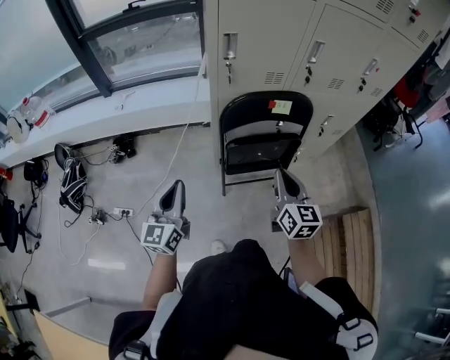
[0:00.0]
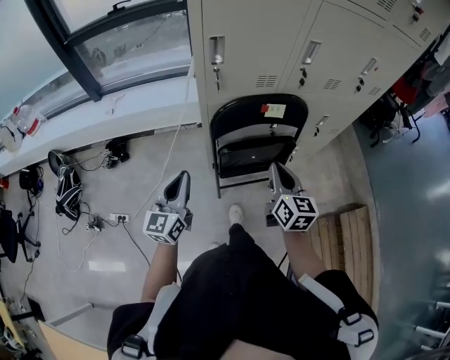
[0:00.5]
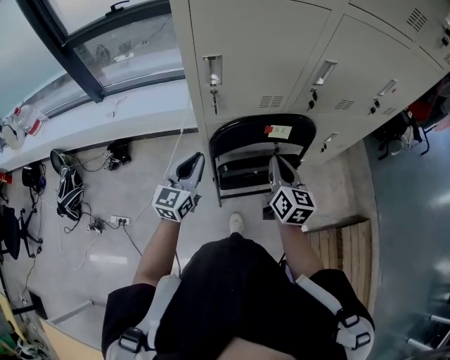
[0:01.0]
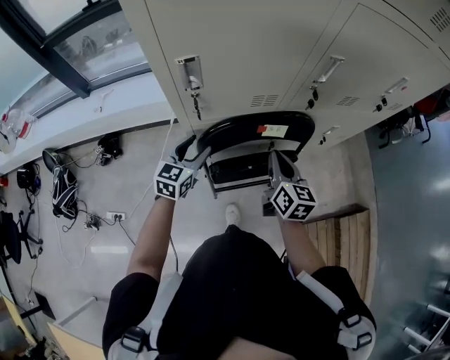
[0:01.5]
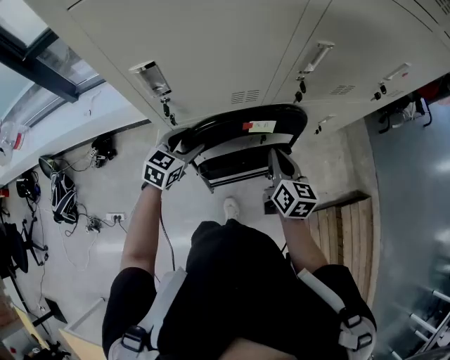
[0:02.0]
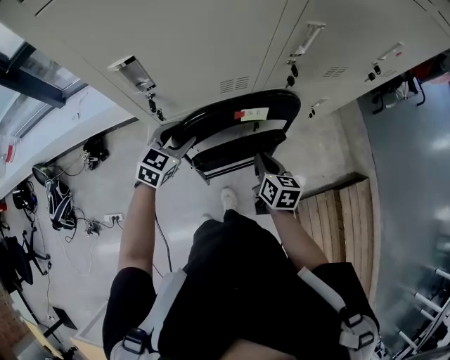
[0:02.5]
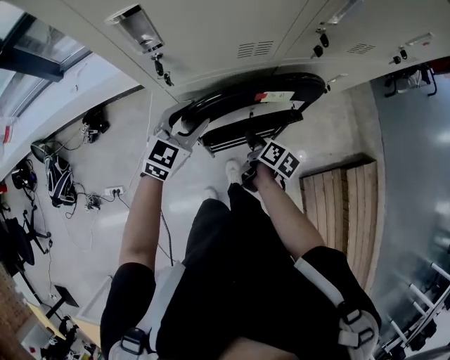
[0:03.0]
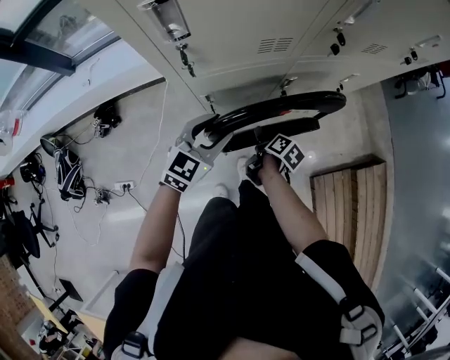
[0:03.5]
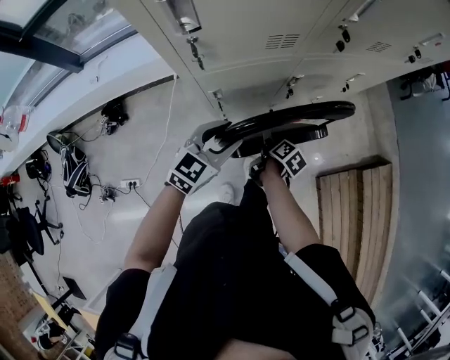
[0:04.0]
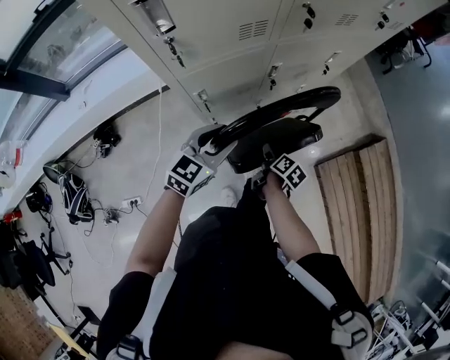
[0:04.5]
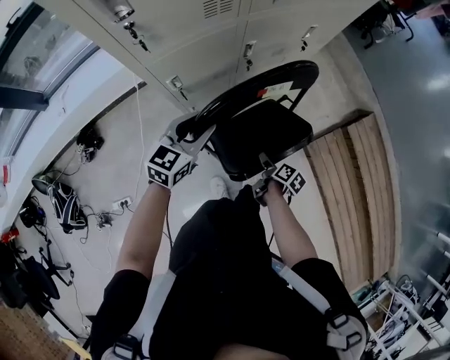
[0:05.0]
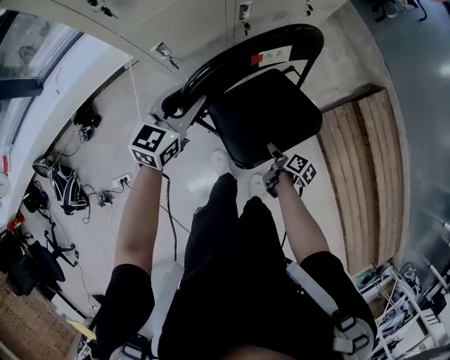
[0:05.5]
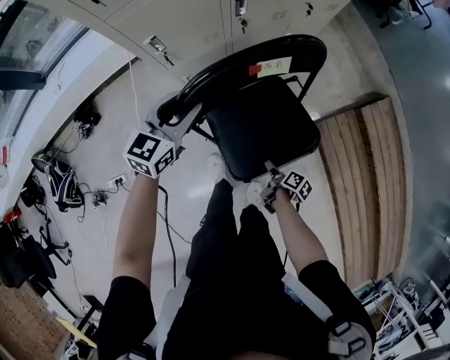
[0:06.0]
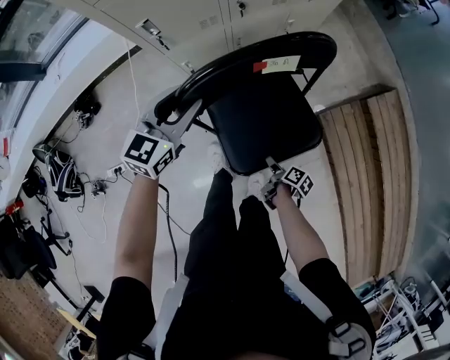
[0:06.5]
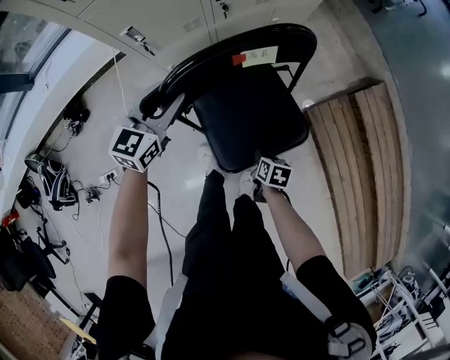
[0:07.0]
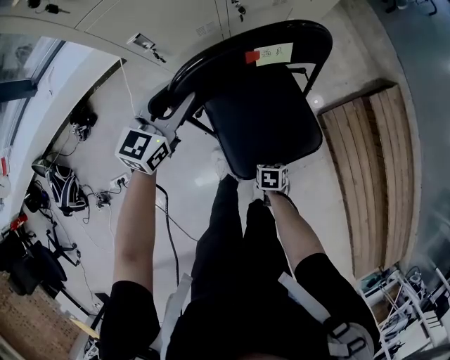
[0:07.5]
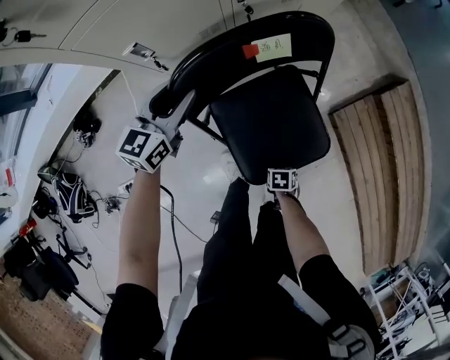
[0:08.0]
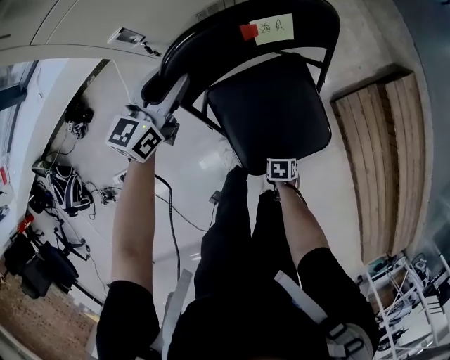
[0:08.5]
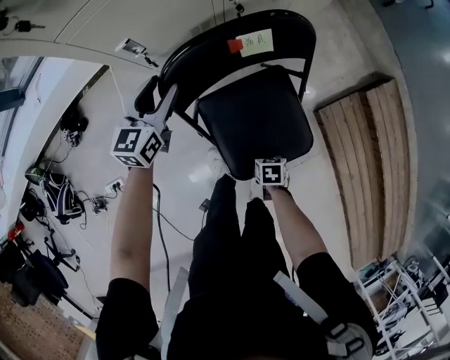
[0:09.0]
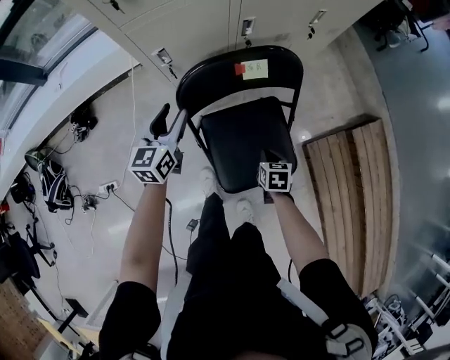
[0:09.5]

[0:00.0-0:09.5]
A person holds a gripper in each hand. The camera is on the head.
0:00.0 to 0:02.0: Both grippers move forward and downward, roughly 30 cm. The left gripper points its fingers approximately 30 degrees further downward, and opens its fingers.
0:02.0 to 0:04.0: The right gripper is displaced downward and backward by roughly 25 cm, rolls clockwise, seen from behind, by roughly 50 degrees, and opens up. The left gripper is displaced backward and to the right by approximately 15 cm.
0:04.0 to 0:05.5: The left gripper changes place by approximately 5 cm; the right gripper travels backward, to the right and downward by some 30 cm.
0:05.5 to 0:07.5: The left gripper shifts about 5 cm downward, while the right gripper swings up and down, approximately 10 cm each way, with 2 reversals, twists some 60 degrees counterclockwise, seen from behind, and closes.
0:07.5 to 0:09.5: The right gripper moves upward, some 10 cm; the left gripper goes downward and returns, approximately 5 cm each way, and turns by approximately 20 degrees.

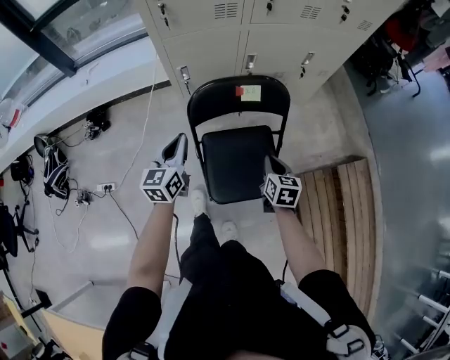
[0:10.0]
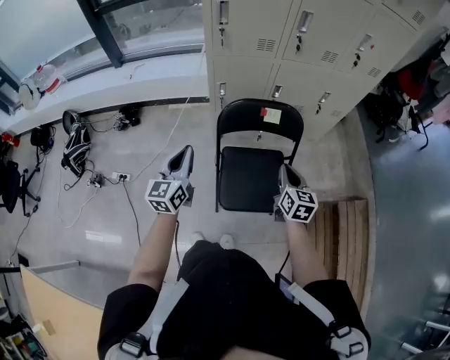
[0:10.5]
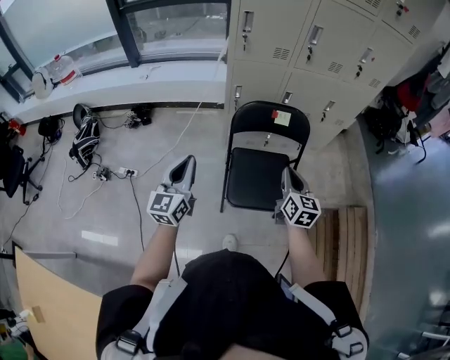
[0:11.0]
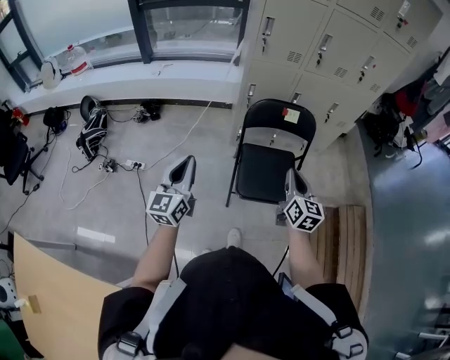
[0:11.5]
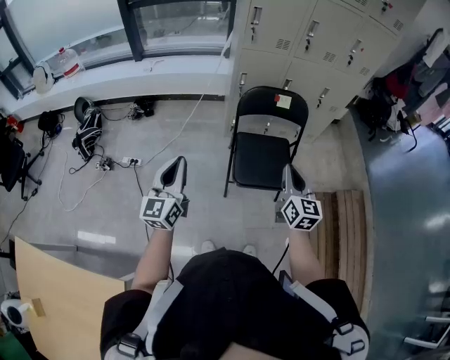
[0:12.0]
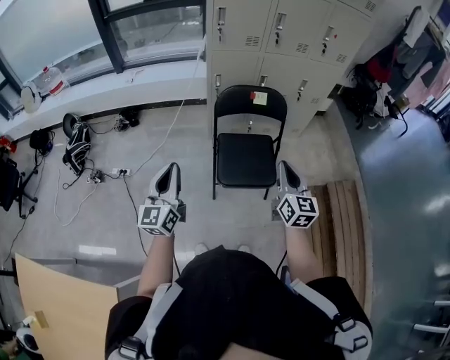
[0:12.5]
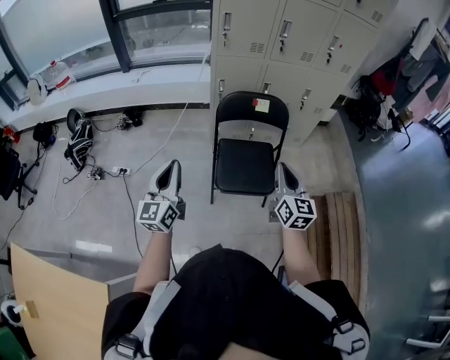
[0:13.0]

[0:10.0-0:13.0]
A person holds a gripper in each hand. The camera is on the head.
0:10.0 to 0:11.5: The left gripper moves backward, upward and to the left, some 40 cm, and swivels some 20 degrees; the right gripper is displaced upward, backward and to the left by some 30 cm, and rotates some 30 degrees.
0:11.5 to 0:13.0: The two grippers go about 10 cm to the right.

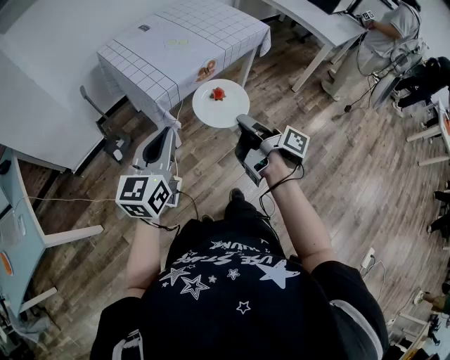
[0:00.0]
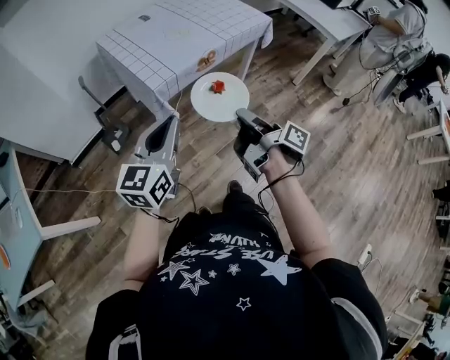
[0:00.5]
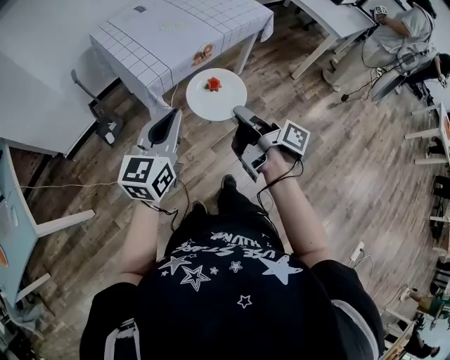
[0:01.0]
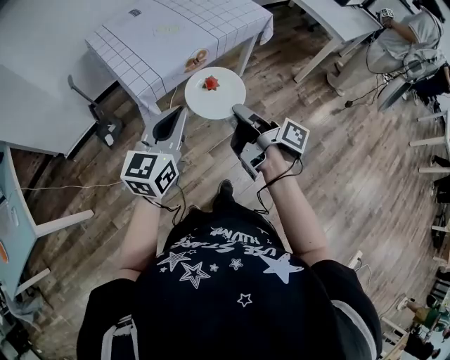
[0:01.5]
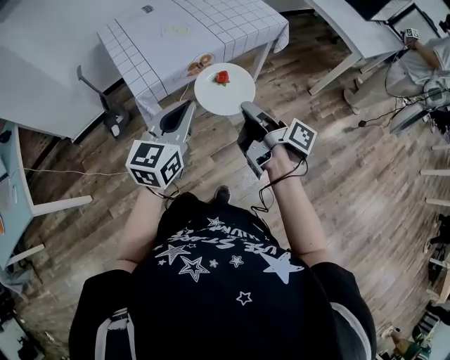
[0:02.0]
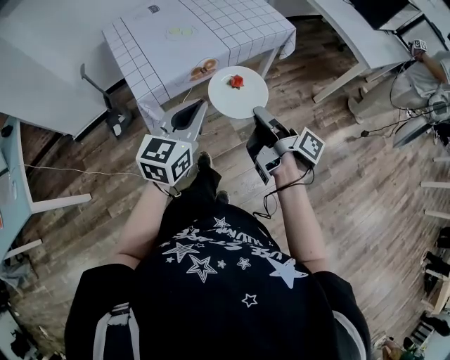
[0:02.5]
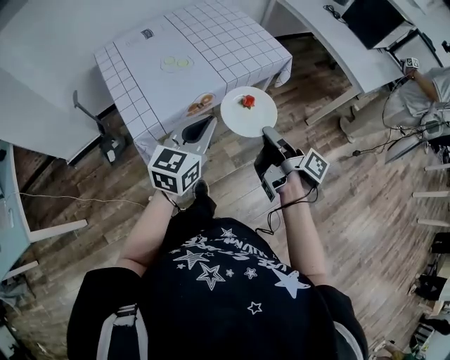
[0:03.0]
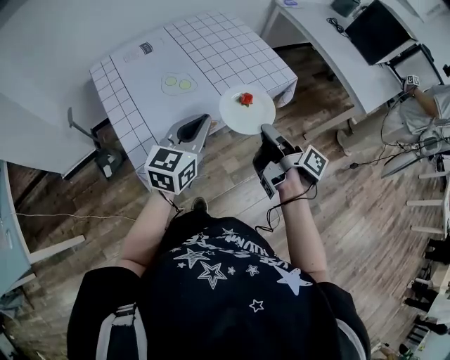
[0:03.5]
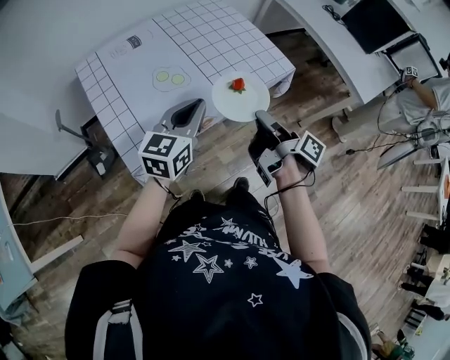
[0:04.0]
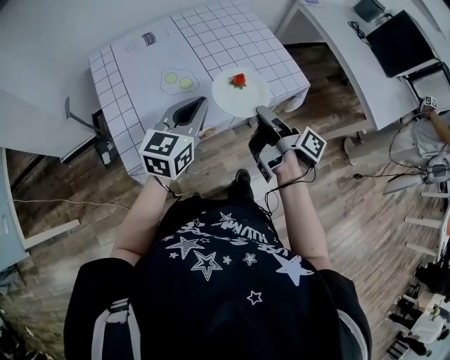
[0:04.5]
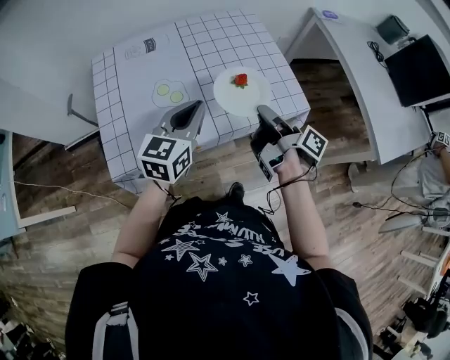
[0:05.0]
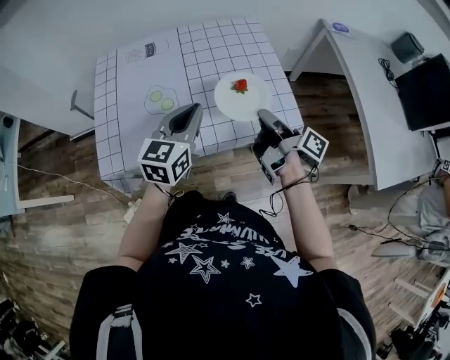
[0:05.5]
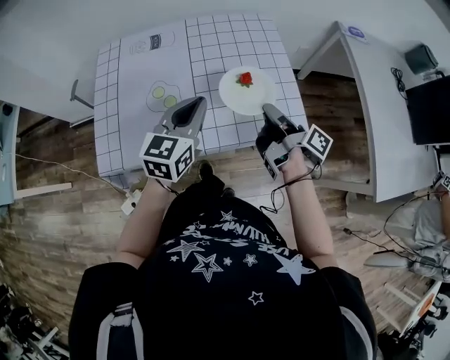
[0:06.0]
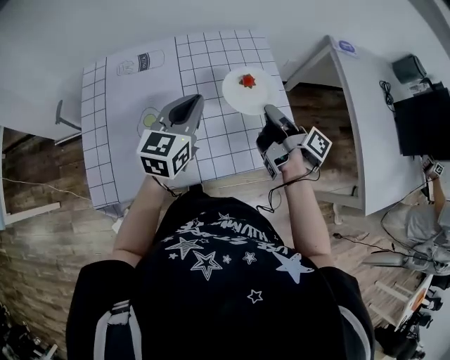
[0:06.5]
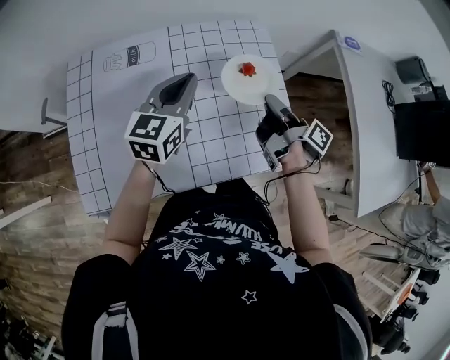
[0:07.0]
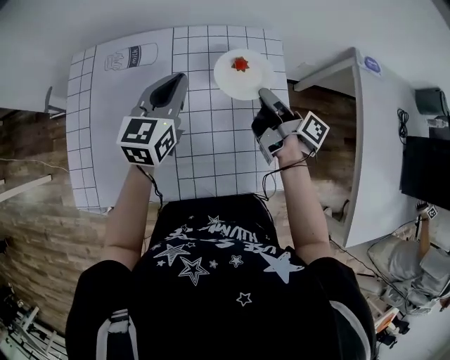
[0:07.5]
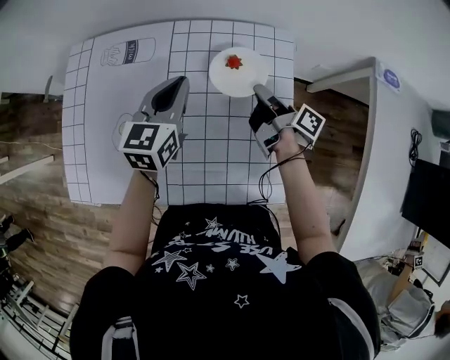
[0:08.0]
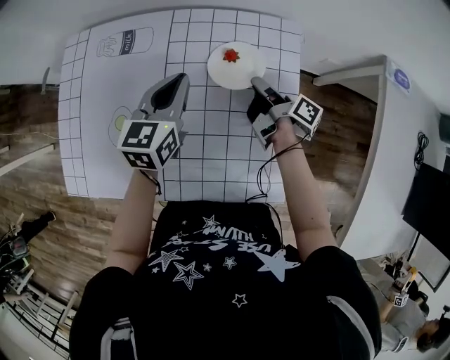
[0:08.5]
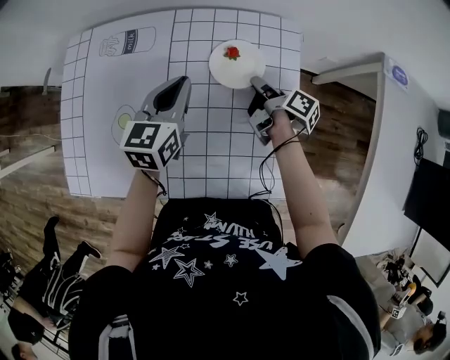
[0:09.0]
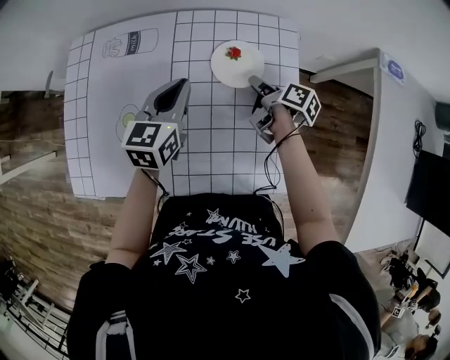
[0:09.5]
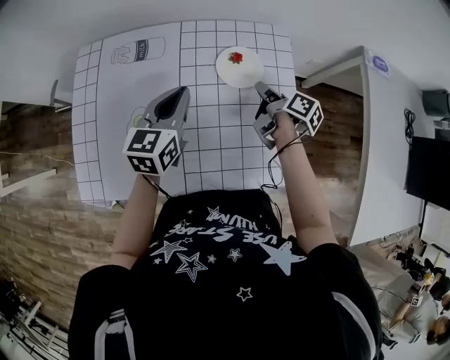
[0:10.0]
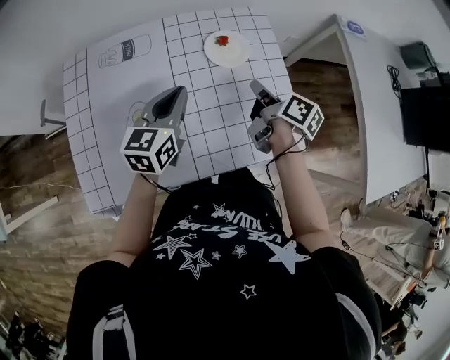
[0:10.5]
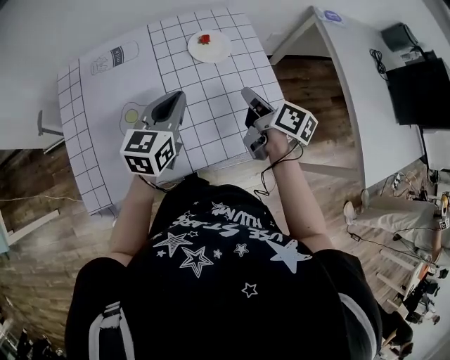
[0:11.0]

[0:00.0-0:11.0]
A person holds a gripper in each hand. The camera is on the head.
0:00.0 to 0:02.0: The left gripper moves about 20 cm.
0:02.0 to 0:03.5: The left gripper changes place by roughly 20 cm.
0:03.5 to 0:05.5: The left gripper ends up roughly 20 cm from where it was, and rotates about 30 degrees.
0:05.5 to 0:07.5: The left gripper shifts by approximately 25 cm.
0:07.5 to 0:09.0: The left gripper goes some 5 cm downward.
0:09.0 to 0:11.0: The left gripper ends up approximately 15 cm from where it was, and changes its angle by some 20 degrees.

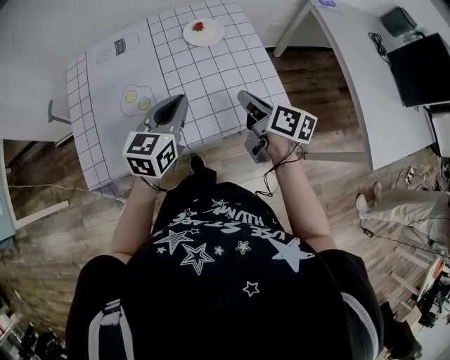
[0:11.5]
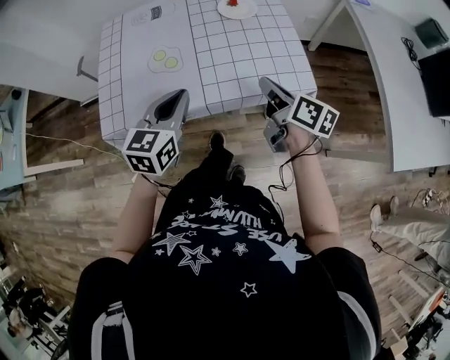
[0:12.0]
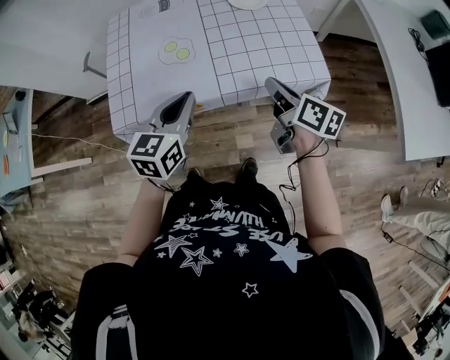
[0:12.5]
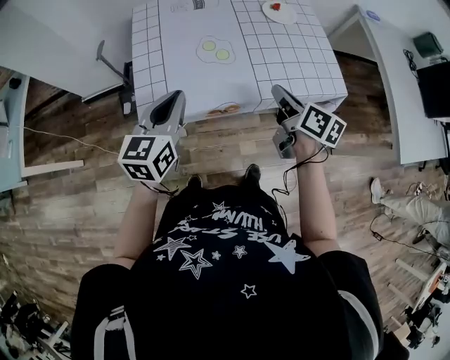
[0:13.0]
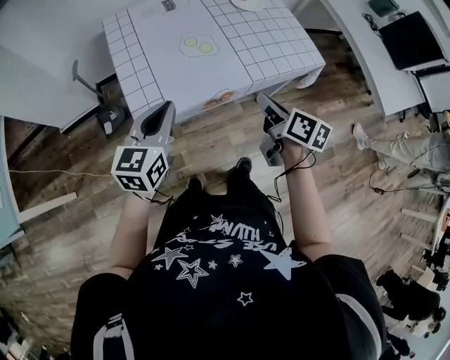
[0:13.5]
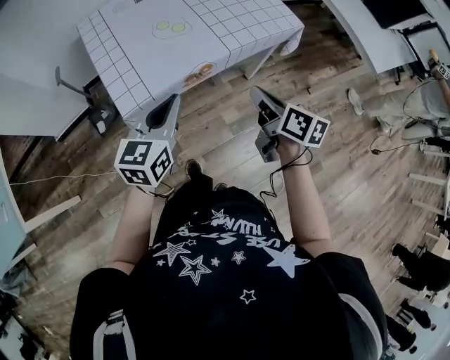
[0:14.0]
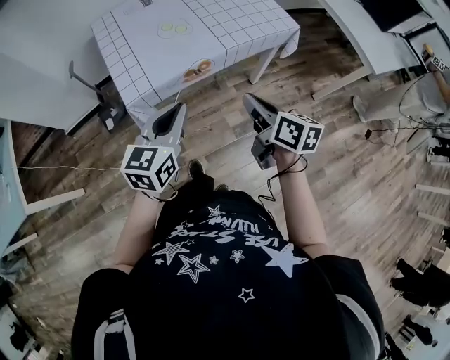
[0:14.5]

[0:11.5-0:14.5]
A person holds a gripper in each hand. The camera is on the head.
0:11.5 to 0:13.0: The left gripper moves about 30 cm.
0:13.0 to 0:14.5: The left gripper changes place by about 20 cm, and turns by some 20 degrees.
